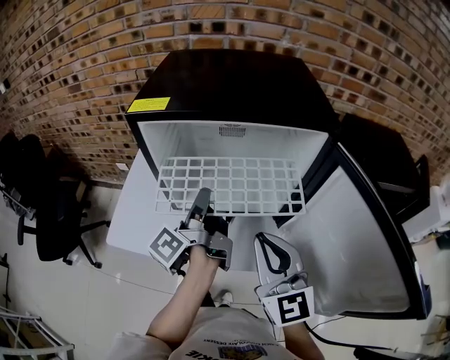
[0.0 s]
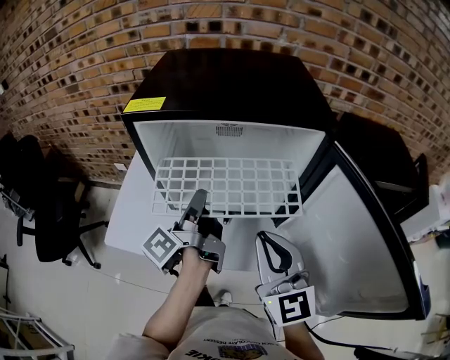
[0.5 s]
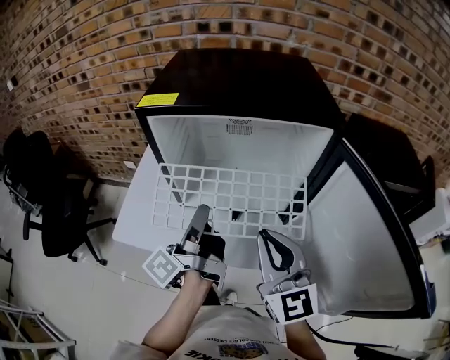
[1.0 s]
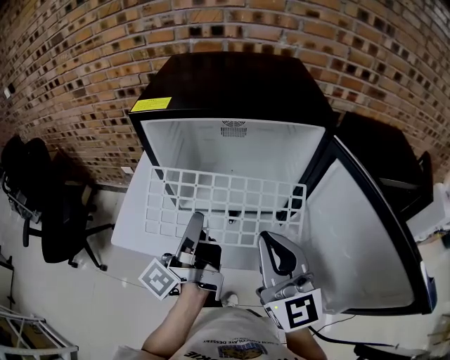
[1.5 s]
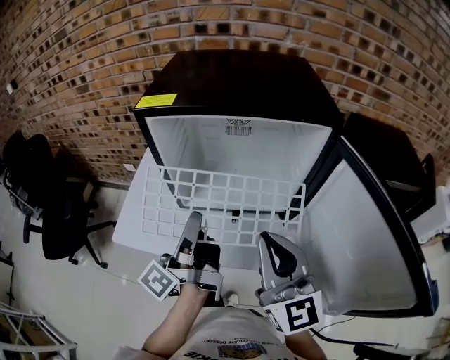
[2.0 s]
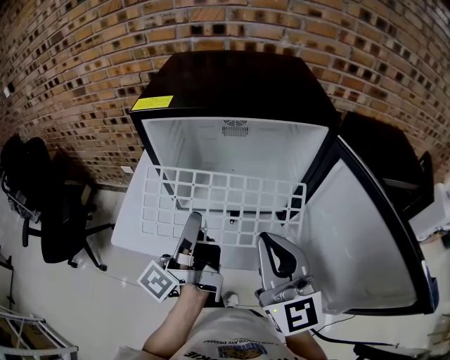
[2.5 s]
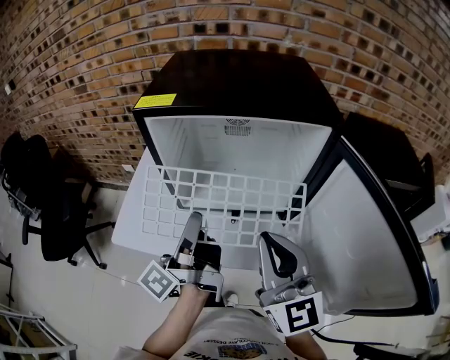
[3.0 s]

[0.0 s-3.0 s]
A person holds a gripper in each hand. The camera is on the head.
0.0 to 1.5 s: The left gripper is displaced backward by about 5 cm.
1.5 to 3.0 s: Neither gripper changes place.

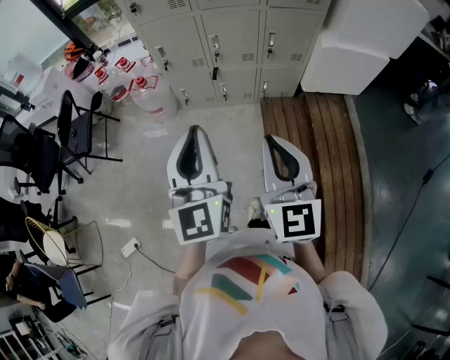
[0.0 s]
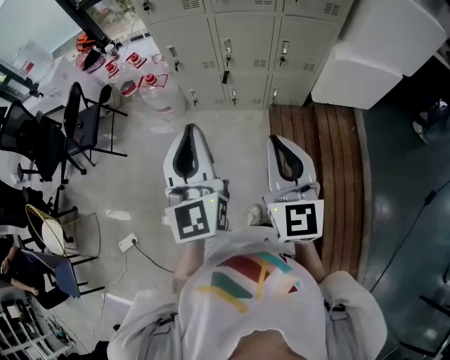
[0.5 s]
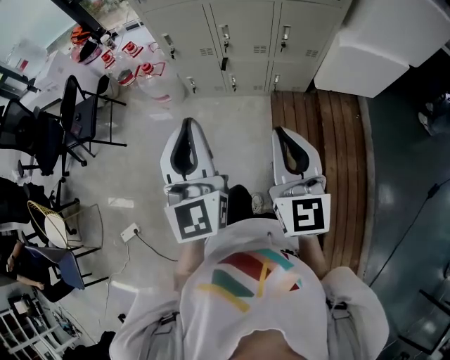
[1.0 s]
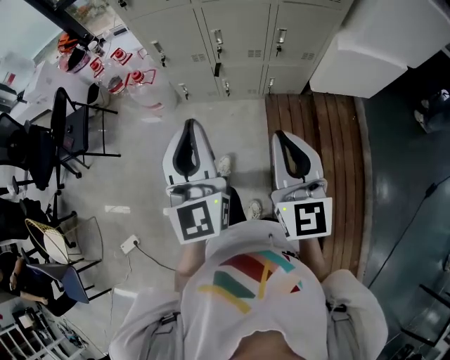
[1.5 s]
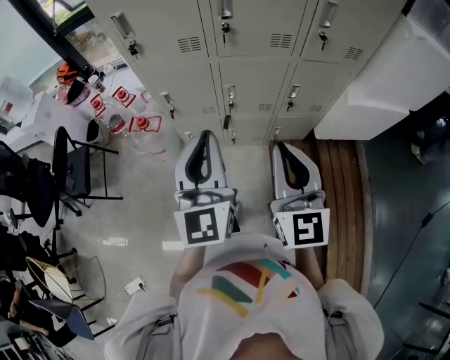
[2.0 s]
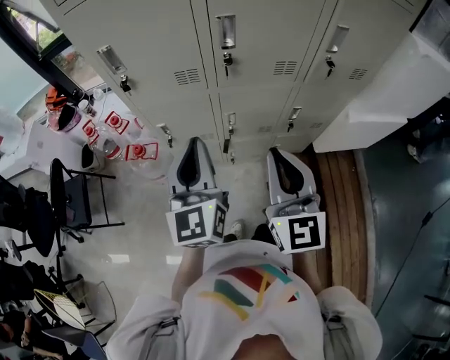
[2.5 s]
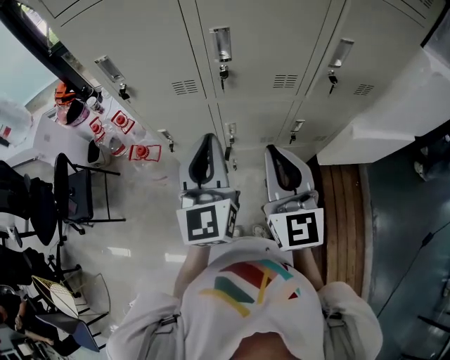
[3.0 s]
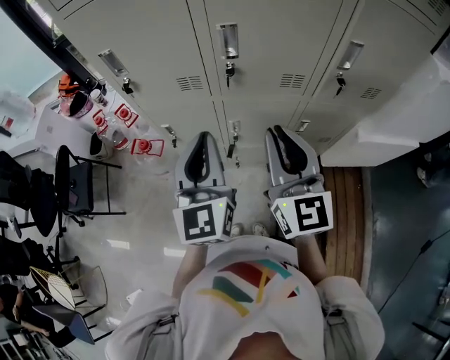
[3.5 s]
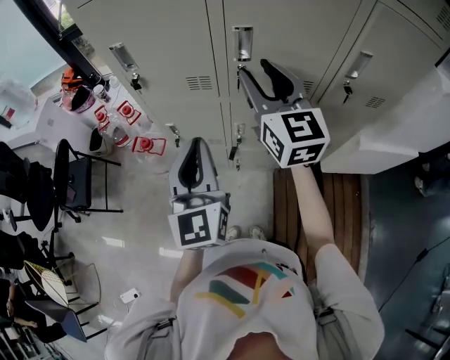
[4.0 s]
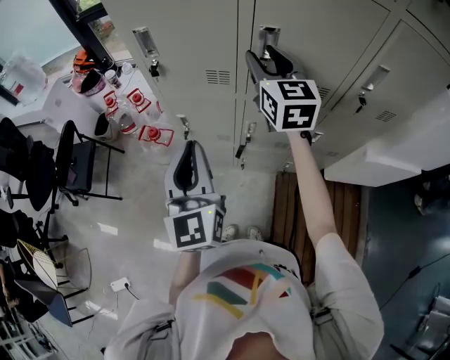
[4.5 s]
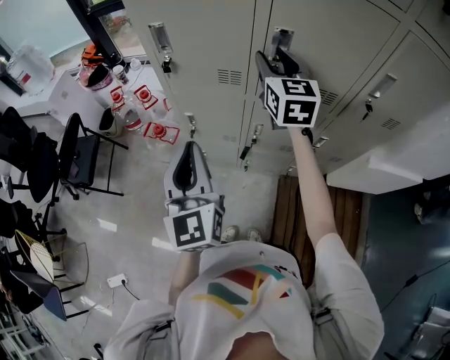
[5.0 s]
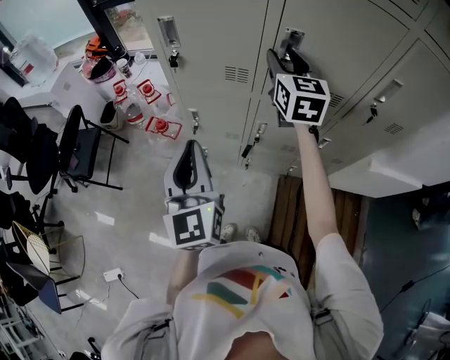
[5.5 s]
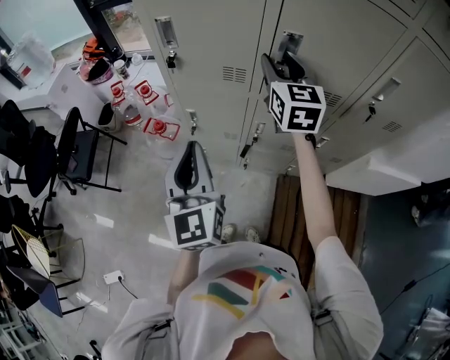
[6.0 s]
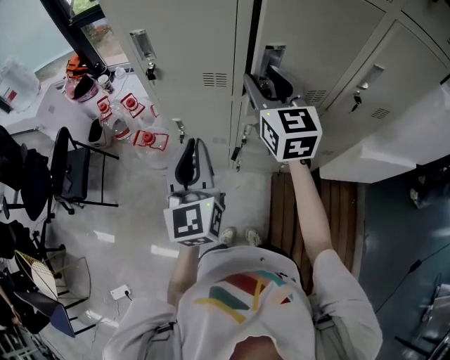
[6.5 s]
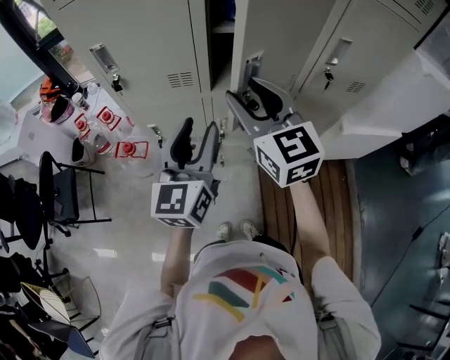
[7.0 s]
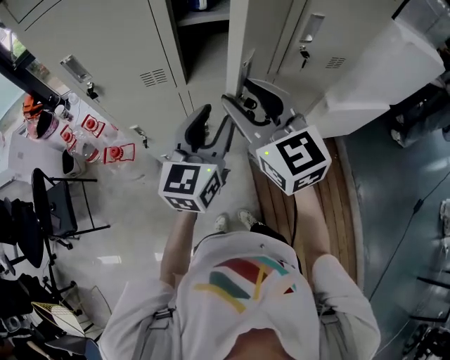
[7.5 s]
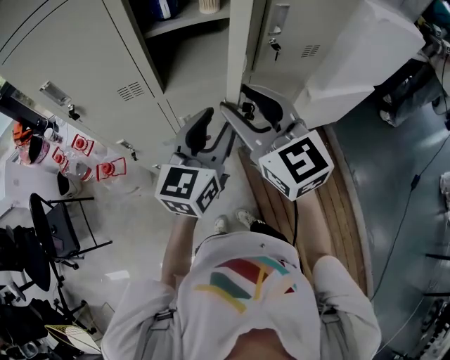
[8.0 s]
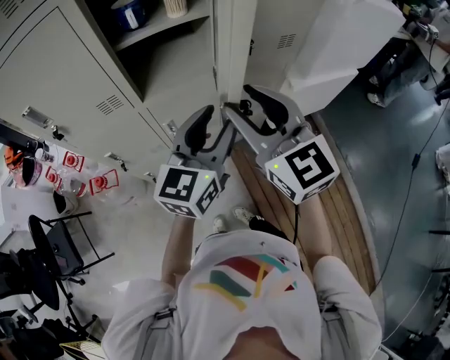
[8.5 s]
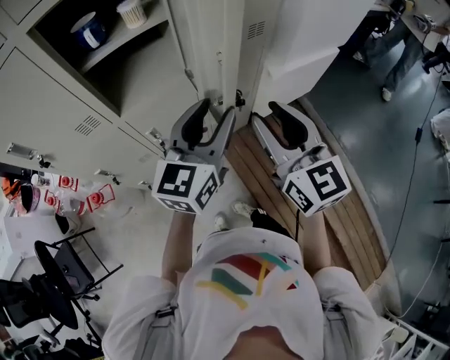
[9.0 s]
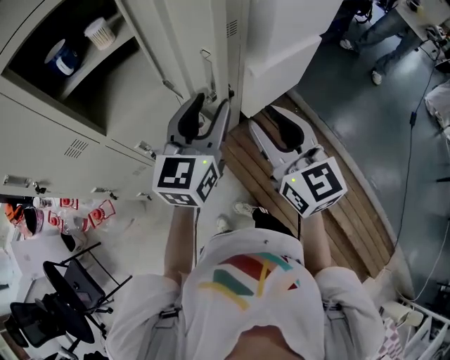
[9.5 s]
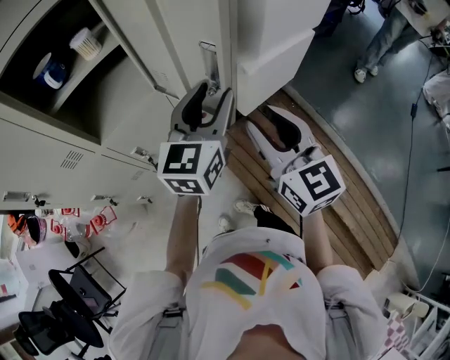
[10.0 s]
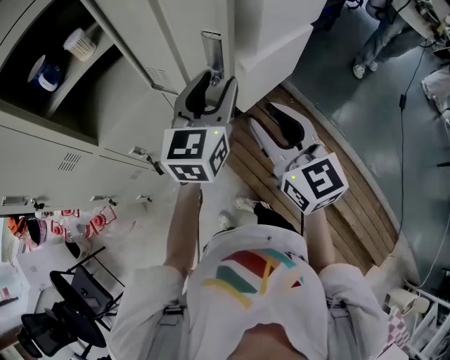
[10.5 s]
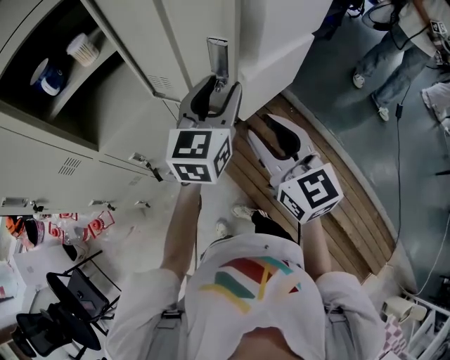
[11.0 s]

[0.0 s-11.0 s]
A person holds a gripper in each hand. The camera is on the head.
0.0 to 2.0 s: Both grippers travel together forward, about 30 cm.
2.0 to 3.5 s: The grippers both shift forward by about 15 cm.
3.5 to 5.5 s: The right gripper goes approximately 20 cm forward, and opens its fingers, while the left gripper heads to the left, covering about 10 cm.
5.5 to 7.5 s: The left gripper moves to the right, roughly 20 cm, changes its angle by some 50 degrees, and opens. The right gripper shifts roughly 20 cm backward.
7.5 to 9.0 s: Both grippers travel together to the right, roughly 20 cm. The right gripper changes its angle by roughly 30 degrees. Meanwhile the left gripper swivels some 20 degrees.
9.0 to 11.0 s: The right gripper travels to the right by roughly 5 cm, while the left gripper travels to the right and forward by approximately 15 cm.

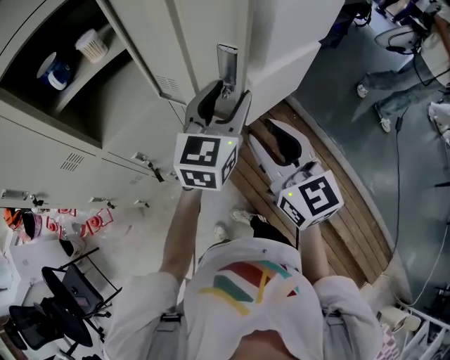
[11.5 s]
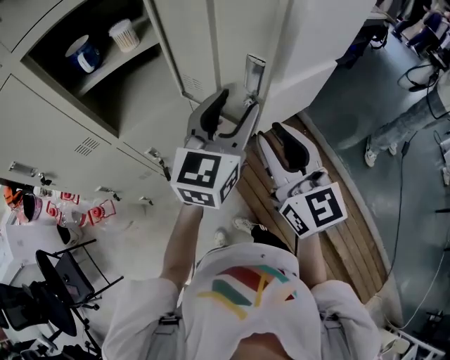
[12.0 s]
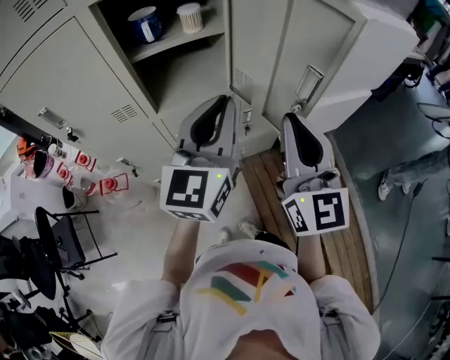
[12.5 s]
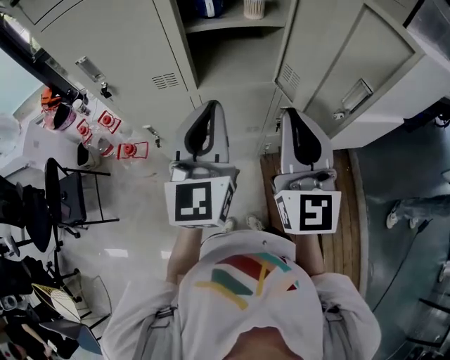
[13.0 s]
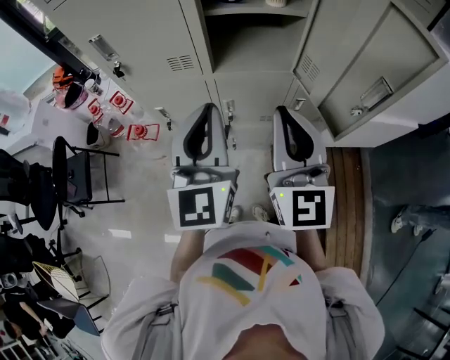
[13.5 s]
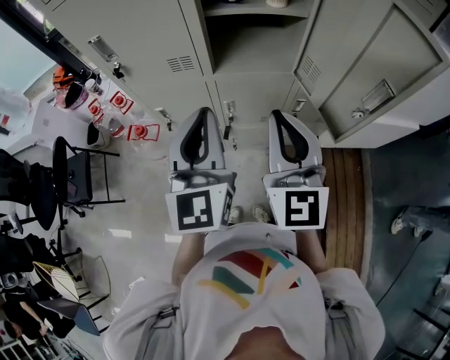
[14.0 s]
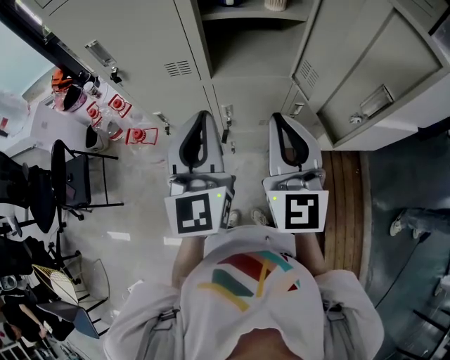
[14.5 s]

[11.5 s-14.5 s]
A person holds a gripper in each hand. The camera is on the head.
11.5 to 13.0 s: The right gripper moves about 20 cm, swivels about 20 degrees, and closes up. Meanwhile the left gripper shifts by some 30 cm, swivels about 50 degrees, and closes its fingers.
13.0 to 14.5 s: The right gripper ends up roughly 5 cm from where it was. The left gripper changes place by approximately 5 cm.

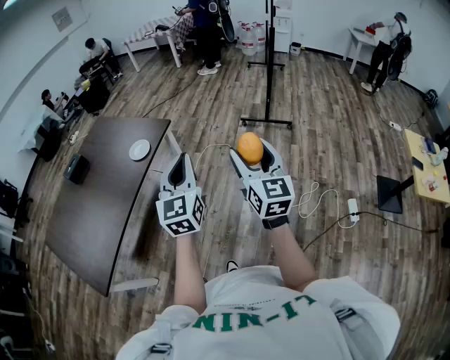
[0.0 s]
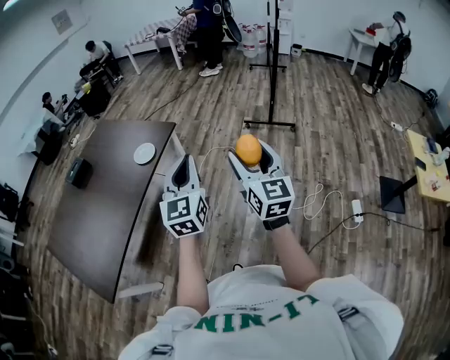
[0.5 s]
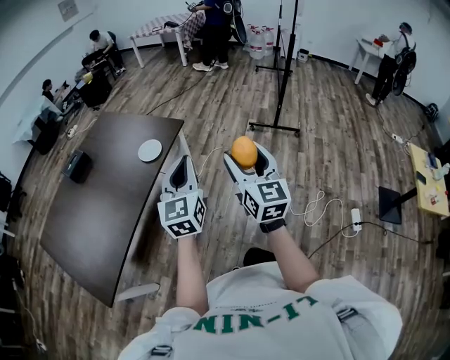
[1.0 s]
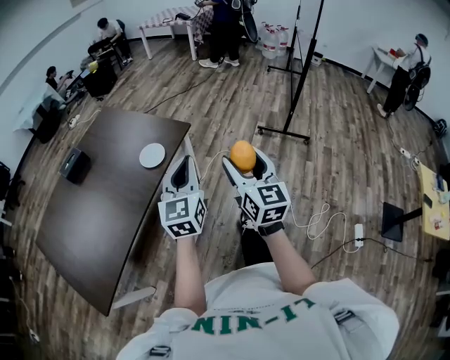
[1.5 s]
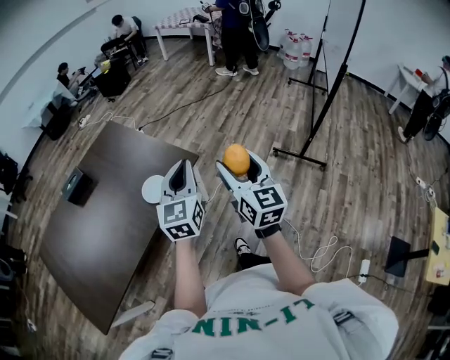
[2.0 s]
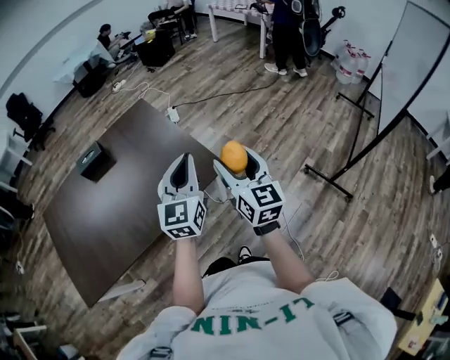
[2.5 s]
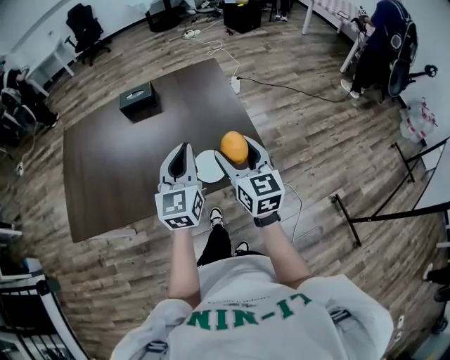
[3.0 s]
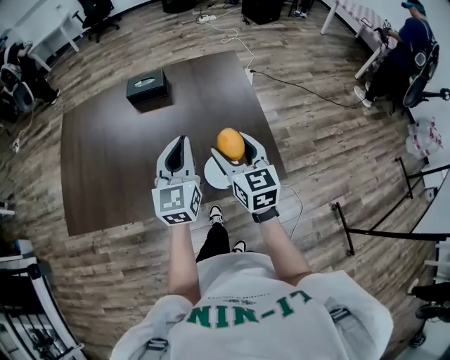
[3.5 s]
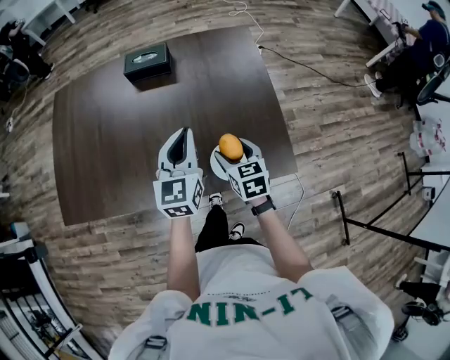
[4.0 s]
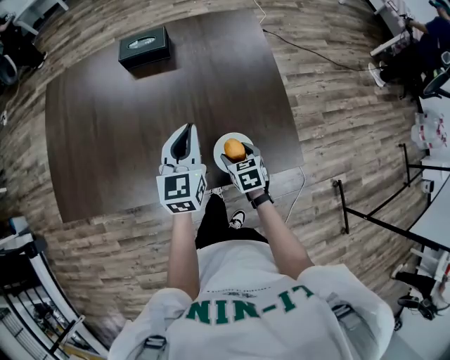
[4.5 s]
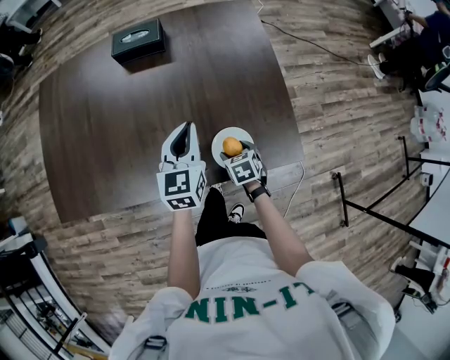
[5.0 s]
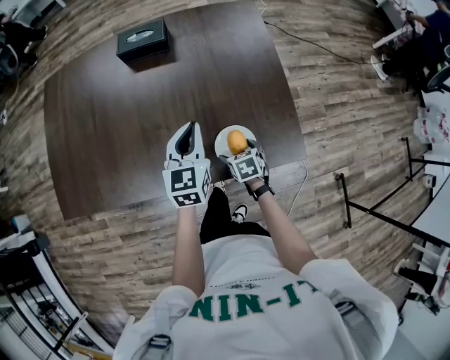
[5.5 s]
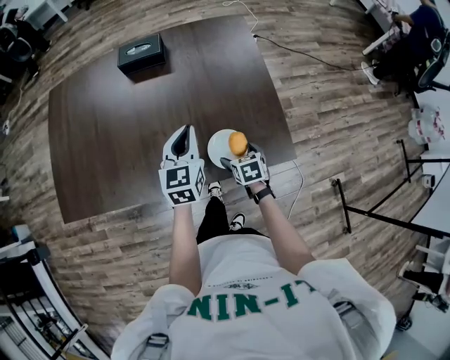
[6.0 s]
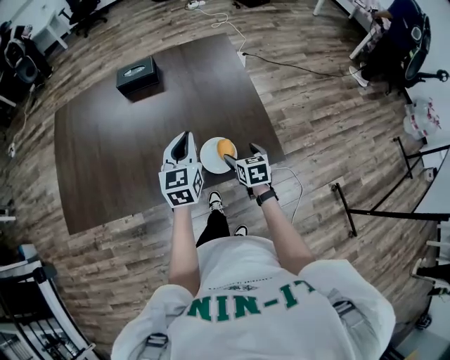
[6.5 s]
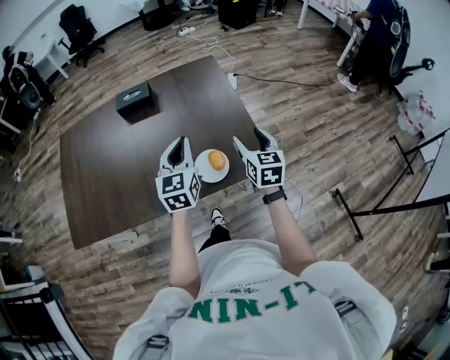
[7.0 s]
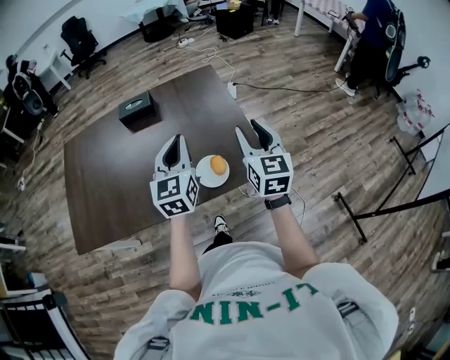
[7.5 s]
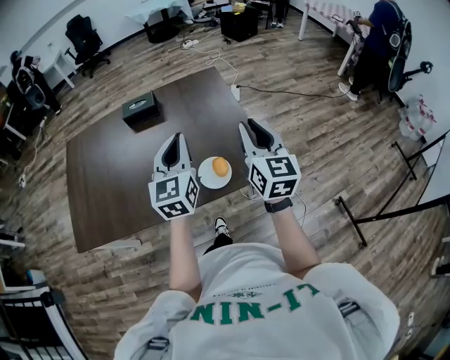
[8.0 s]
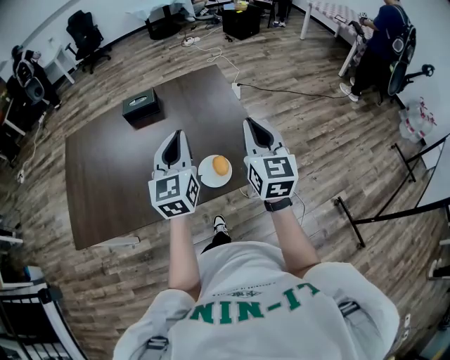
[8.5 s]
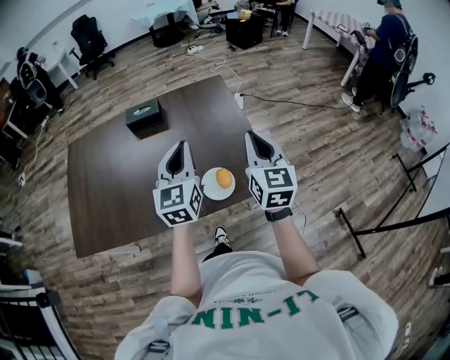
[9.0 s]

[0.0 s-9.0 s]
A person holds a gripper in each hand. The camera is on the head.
0.0 to 2.0 s: The pair of grippers is taken forward, about 50 cm.
2.0 to 4.5 s: Both grippers are carried about 50 cm. The left gripper swivels about 50 degrees, while the right gripper tilts its fingers some 50 degrees downward.
4.5 to 7.0 s: The right gripper goes about 30 cm upward and to the right, points its fingers approximately 30 degrees further upward, and opens, then closes again. The left gripper heads backward, upward and to the right, covering some 15 cm.
7.0 to 9.0 s: The right gripper travels upward by about 15 cm, and closes its fingers; the left gripper travels upward by approximately 10 cm.
